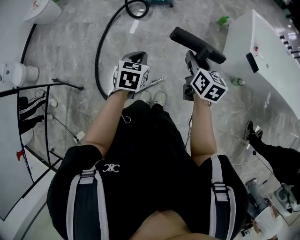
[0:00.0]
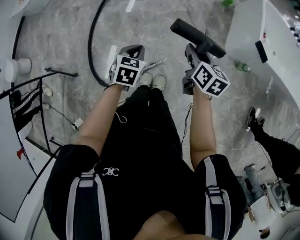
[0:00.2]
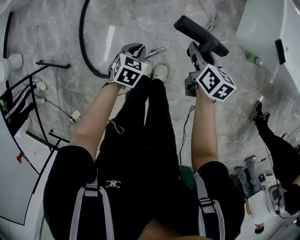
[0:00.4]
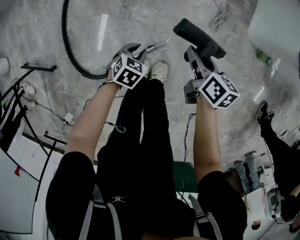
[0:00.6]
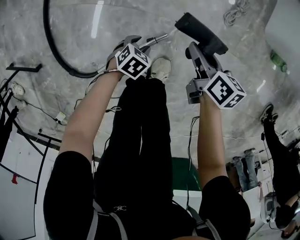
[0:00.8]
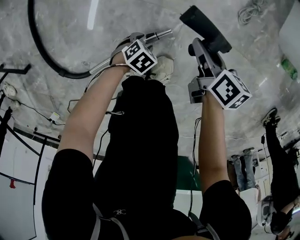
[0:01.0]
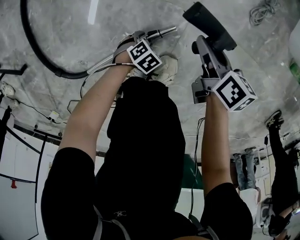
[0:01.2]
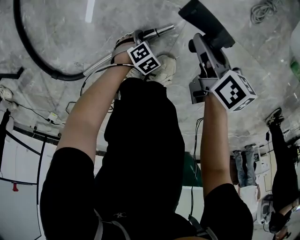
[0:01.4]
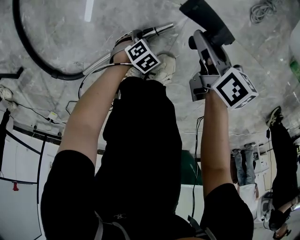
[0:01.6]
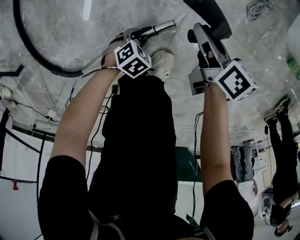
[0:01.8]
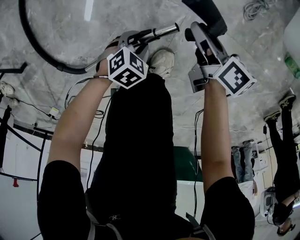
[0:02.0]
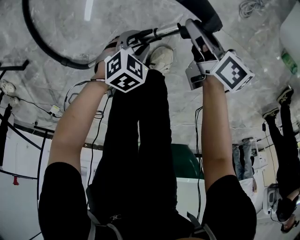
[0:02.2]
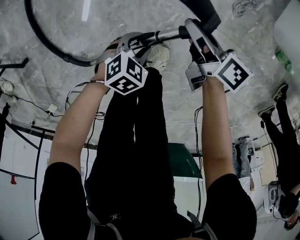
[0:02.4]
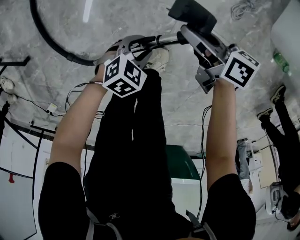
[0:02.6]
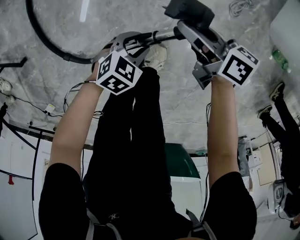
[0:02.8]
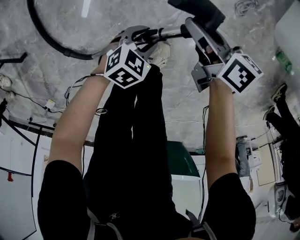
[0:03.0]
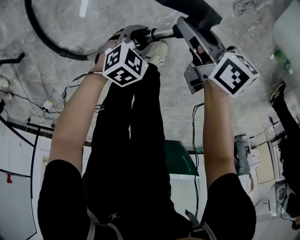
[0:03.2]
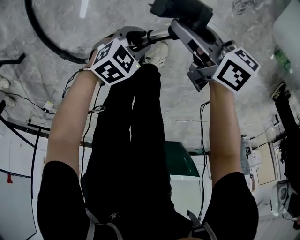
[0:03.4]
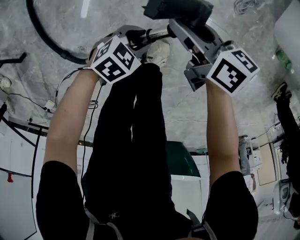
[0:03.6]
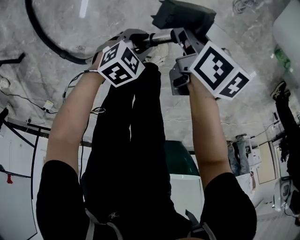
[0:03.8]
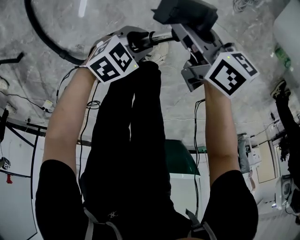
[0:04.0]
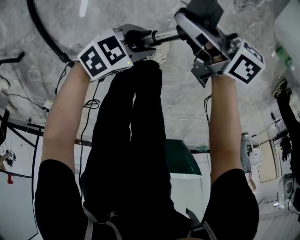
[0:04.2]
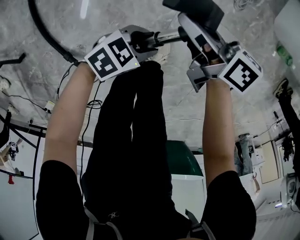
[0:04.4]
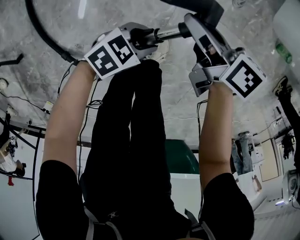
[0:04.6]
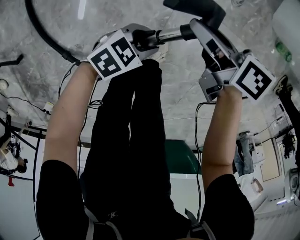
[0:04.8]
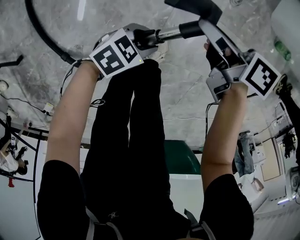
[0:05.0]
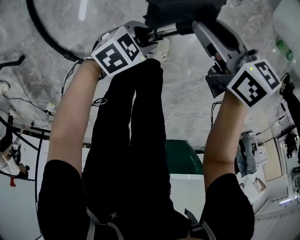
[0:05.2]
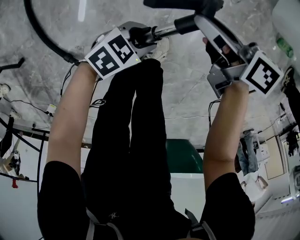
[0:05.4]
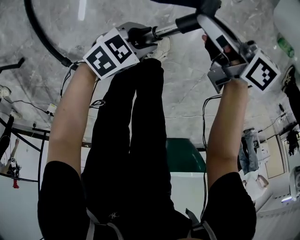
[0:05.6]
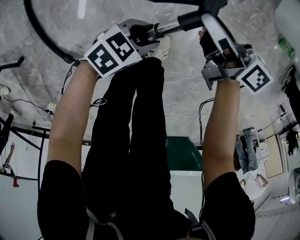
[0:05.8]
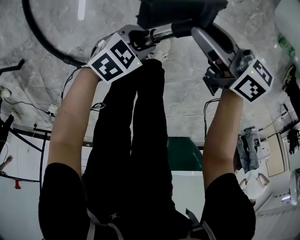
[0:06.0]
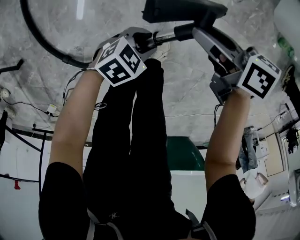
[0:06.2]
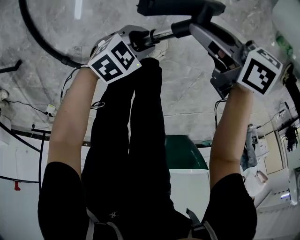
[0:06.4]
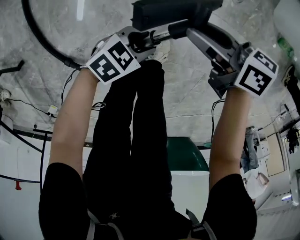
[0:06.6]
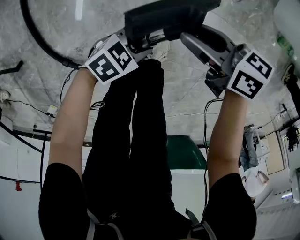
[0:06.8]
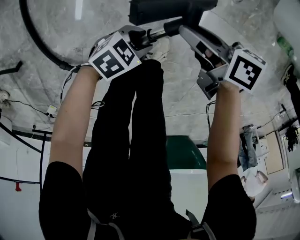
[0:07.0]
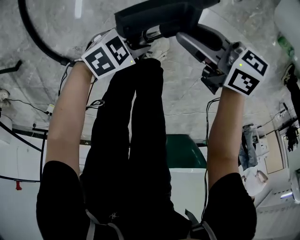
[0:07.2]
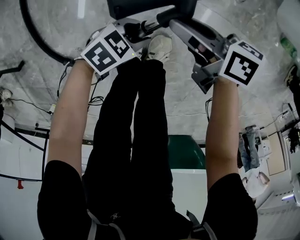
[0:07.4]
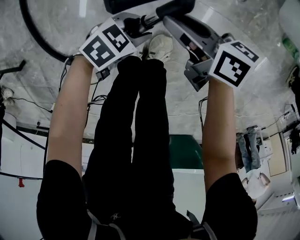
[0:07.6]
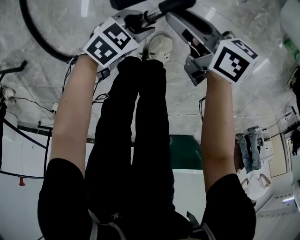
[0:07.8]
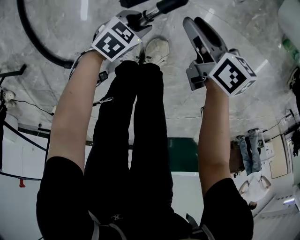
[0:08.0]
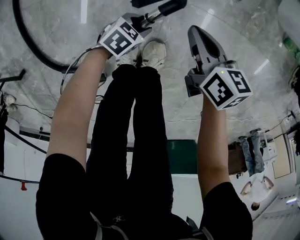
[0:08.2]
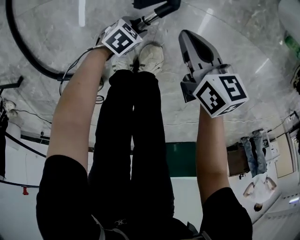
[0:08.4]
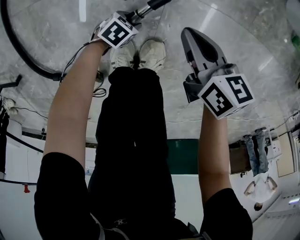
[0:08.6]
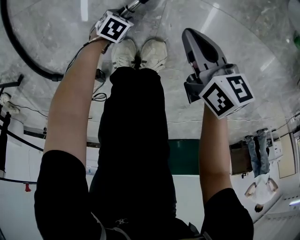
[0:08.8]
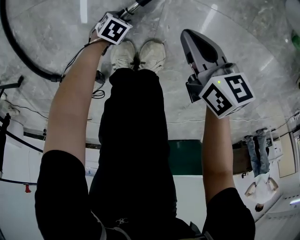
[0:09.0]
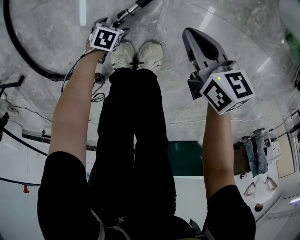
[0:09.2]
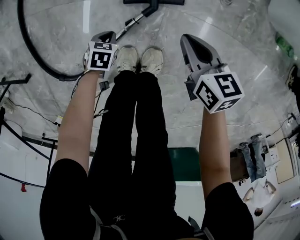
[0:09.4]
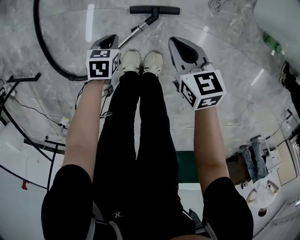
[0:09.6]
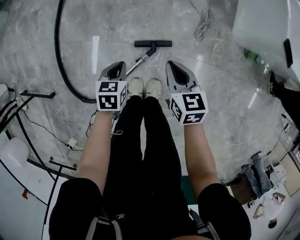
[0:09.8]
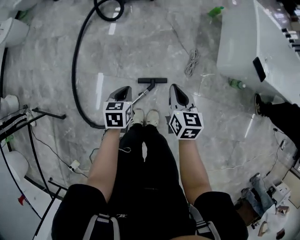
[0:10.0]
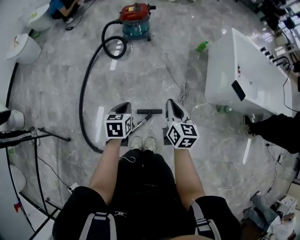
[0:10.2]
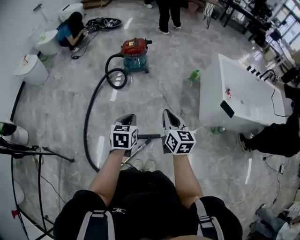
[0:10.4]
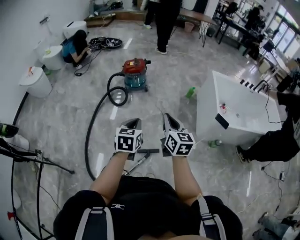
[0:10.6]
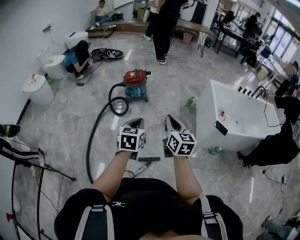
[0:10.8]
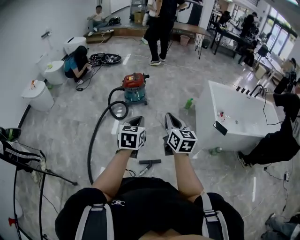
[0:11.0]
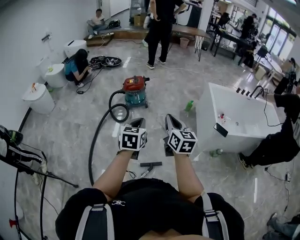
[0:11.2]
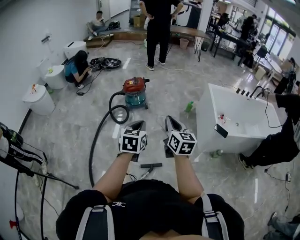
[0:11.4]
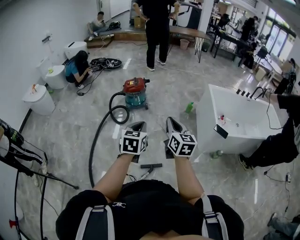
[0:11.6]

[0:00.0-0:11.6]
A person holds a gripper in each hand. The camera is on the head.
0:00.0 to 0:01.4: The grippers both shift downward by approximately 90 cm. The right gripper changes its angle by some 30 degrees. The left gripper tips its fingers downward by about 40 degrees, and opens its fingers.
0:01.4 to 0:02.8: The right gripper heads upward, covering about 15 cm, and rotates roughly 30 degrees. The left gripper is displaced upward by roughly 30 cm, and rotates some 30 degrees.
0:02.8 to 0:04.4: The left gripper changes place by approximately 5 cm, and rotates roughly 20 degrees.
0:05.8 to 0:07.2: The right gripper shifts by about 5 cm, and swivels some 30 degrees.
0:07.2 to 0:08.8: The right gripper shifts roughly 15 cm downward, rotates roughly 30 degrees, and closes. The left gripper goes approximately 30 cm downward, and rotates some 30 degrees.
0:08.8 to 0:10.2: The grippers both shift upward by roughly 70 cm. The right gripper swivels some 30 degrees; the left gripper turns by some 50 degrees, and closes up.
0:10.2 to 0:11.6: The grippers both shift upward by approximately 25 cm. The left gripper rotates about 30 degrees.

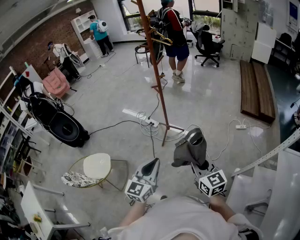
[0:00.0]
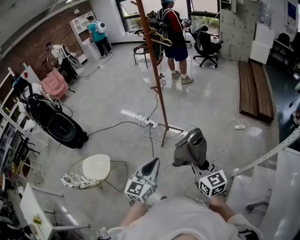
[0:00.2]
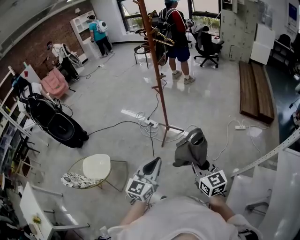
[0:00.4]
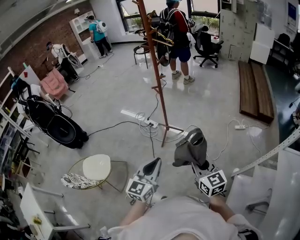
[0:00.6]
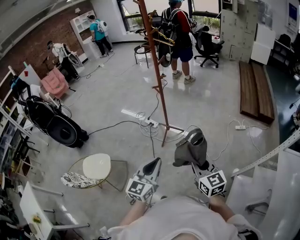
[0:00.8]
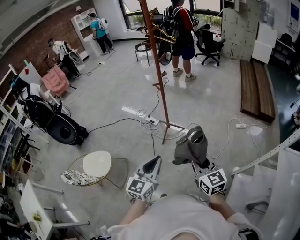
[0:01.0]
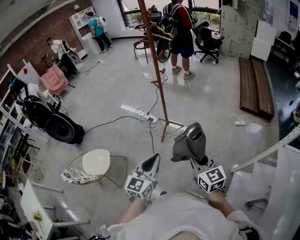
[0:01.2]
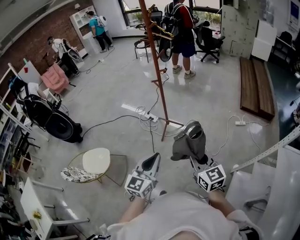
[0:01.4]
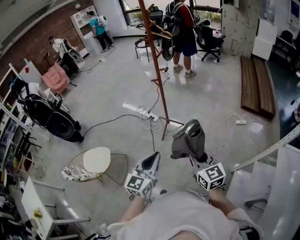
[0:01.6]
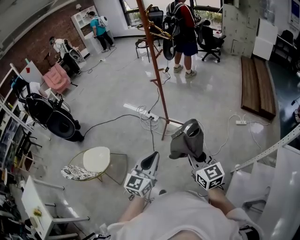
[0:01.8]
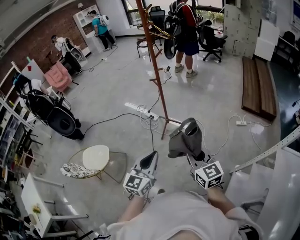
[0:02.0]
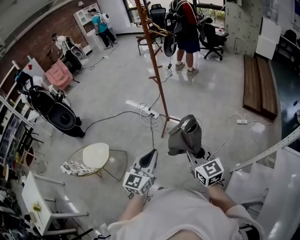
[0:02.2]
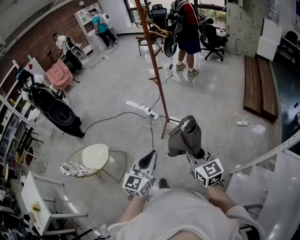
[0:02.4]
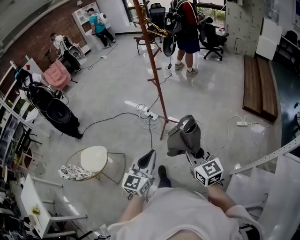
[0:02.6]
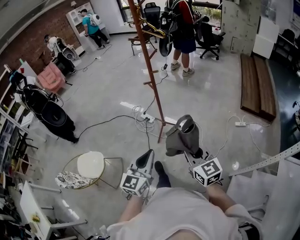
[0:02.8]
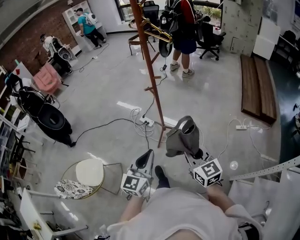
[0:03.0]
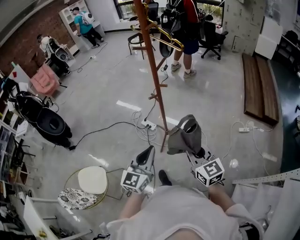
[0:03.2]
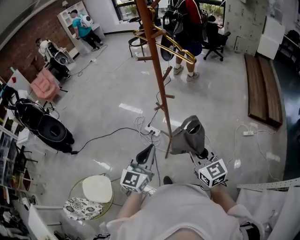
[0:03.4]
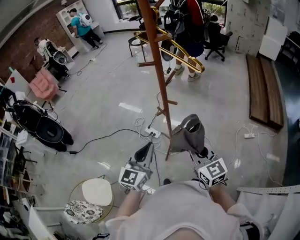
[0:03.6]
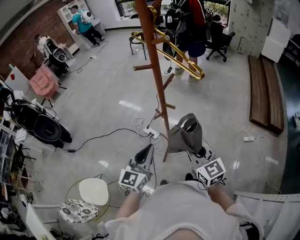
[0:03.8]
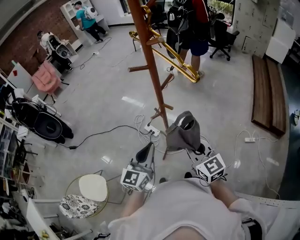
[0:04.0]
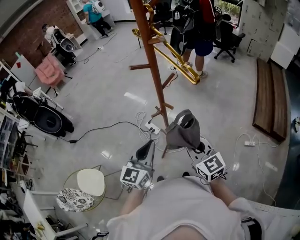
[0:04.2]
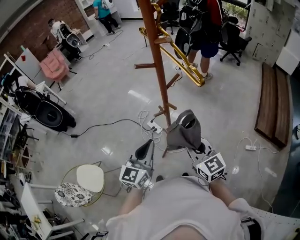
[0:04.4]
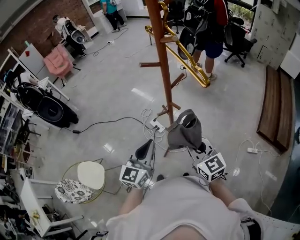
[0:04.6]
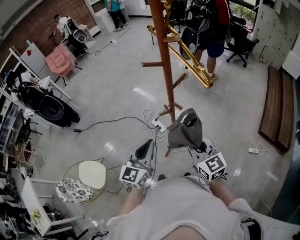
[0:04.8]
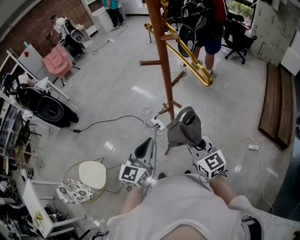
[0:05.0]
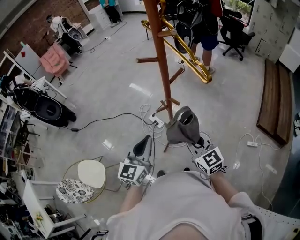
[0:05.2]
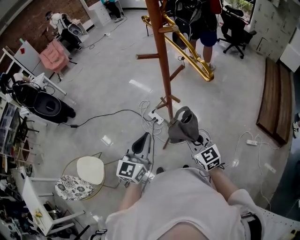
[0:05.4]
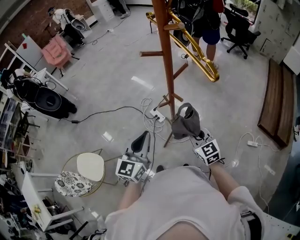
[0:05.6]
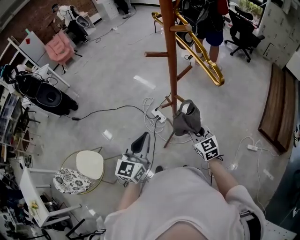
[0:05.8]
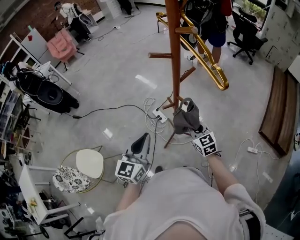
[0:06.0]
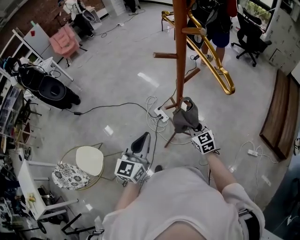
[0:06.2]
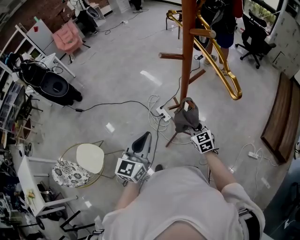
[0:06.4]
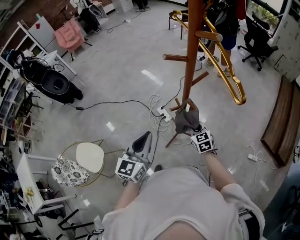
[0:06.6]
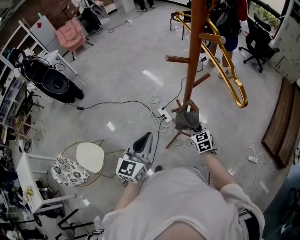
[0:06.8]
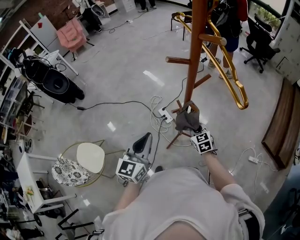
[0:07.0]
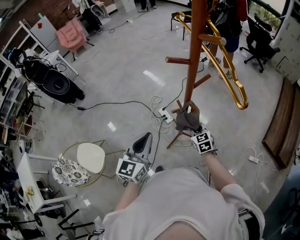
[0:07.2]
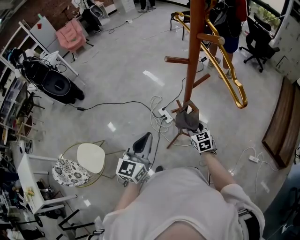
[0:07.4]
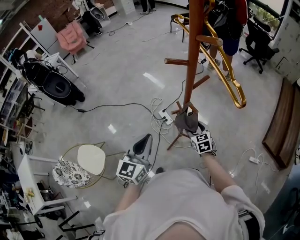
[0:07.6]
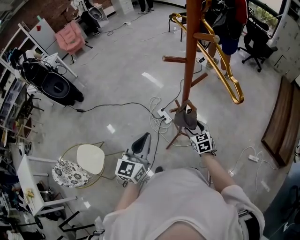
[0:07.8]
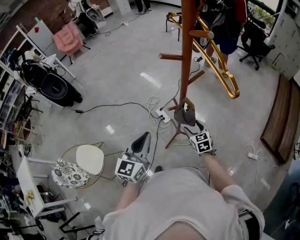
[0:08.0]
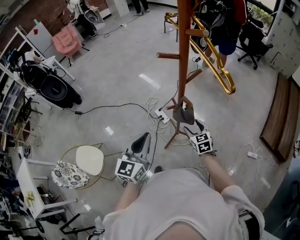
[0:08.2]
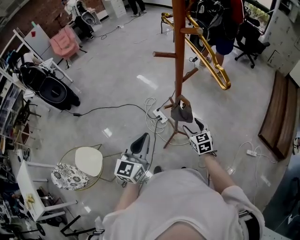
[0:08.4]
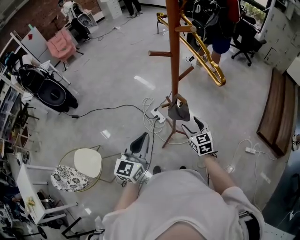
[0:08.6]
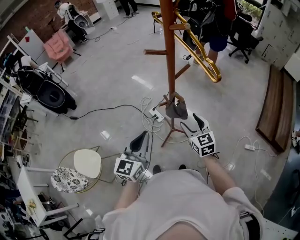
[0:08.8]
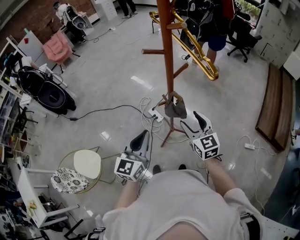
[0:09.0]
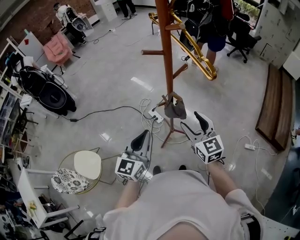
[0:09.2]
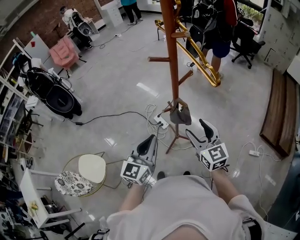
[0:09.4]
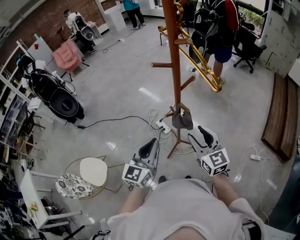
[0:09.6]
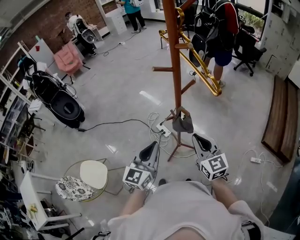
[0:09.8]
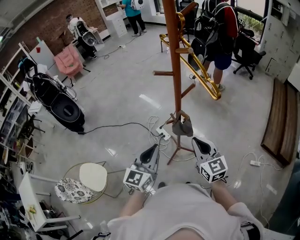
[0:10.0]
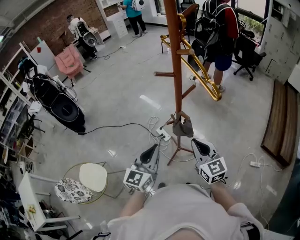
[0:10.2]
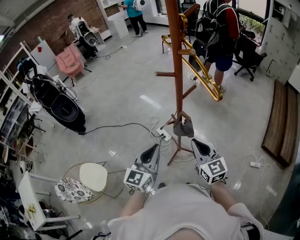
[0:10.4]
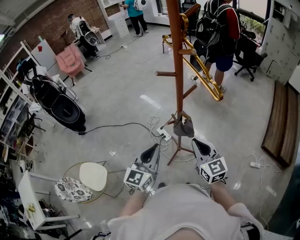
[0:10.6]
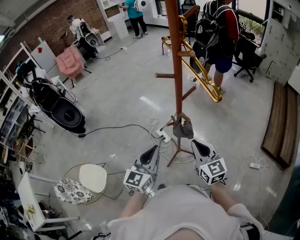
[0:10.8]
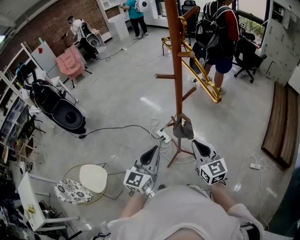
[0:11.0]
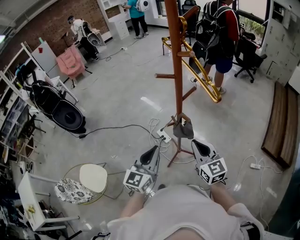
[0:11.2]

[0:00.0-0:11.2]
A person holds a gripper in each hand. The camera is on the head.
0:00.0 to 0:01.6: Both grippers stay put.
0:01.6 to 0:03.2: Both grippers move forward, approximately 30 cm.
0:03.2 to 0:04.8: The grippers both shift forward by some 20 cm.
0:04.8 to 0:06.4: The right gripper moves downward and forward, some 20 cm, and turns by some 20 degrees, while the left gripper shifts by approximately 5 cm.
0:06.4 to 0:08.0: The right gripper opens.
0:08.0 to 0:09.6: The right gripper heads upward and backward, covering approximately 25 cm, and rotates roughly 30 degrees, while the left gripper shifts by some 5 cm.
0:09.6 to 0:11.2: The right gripper closes up.

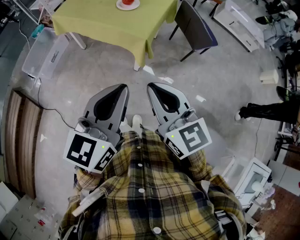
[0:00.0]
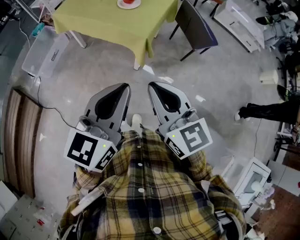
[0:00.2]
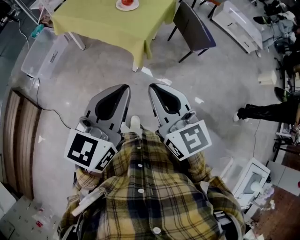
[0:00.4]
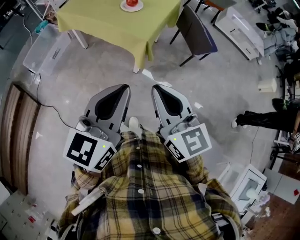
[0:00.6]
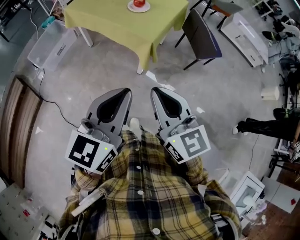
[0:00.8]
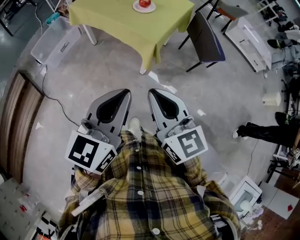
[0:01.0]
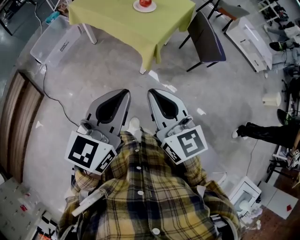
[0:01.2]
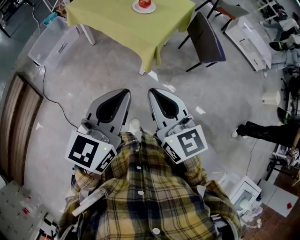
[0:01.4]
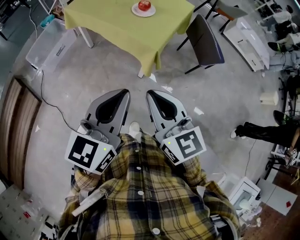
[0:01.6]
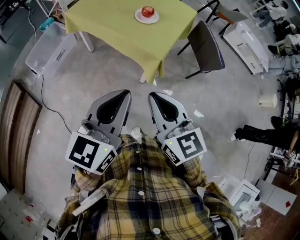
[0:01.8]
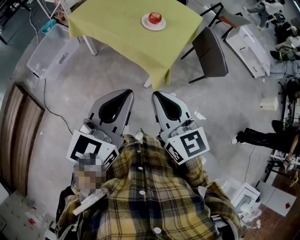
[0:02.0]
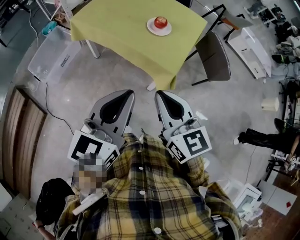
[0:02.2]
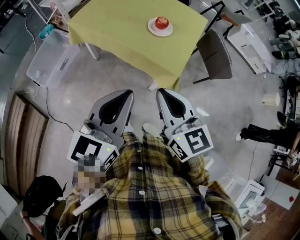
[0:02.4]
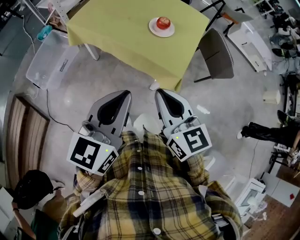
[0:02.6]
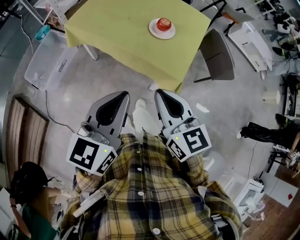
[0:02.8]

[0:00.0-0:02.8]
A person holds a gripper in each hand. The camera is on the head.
0:00.0 to 0:01.4: The grippers move only a little.
0:01.4 to 0:02.8: The grippers both shift forward and to the left by roughly 30 cm.
